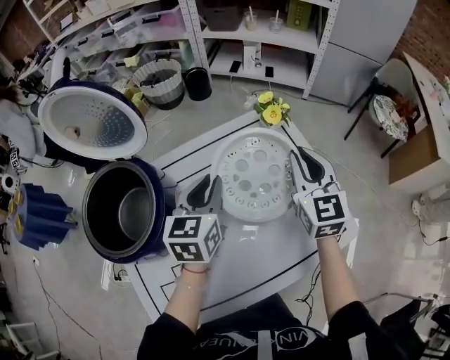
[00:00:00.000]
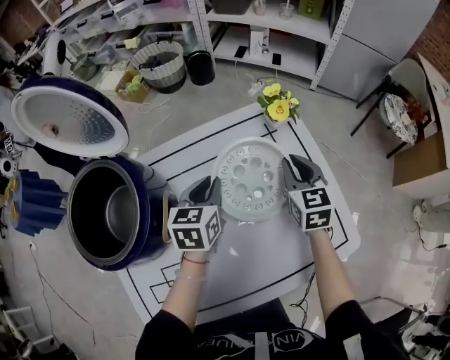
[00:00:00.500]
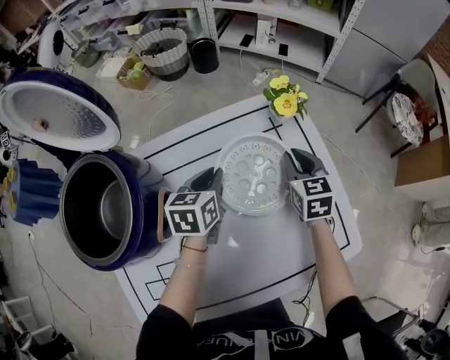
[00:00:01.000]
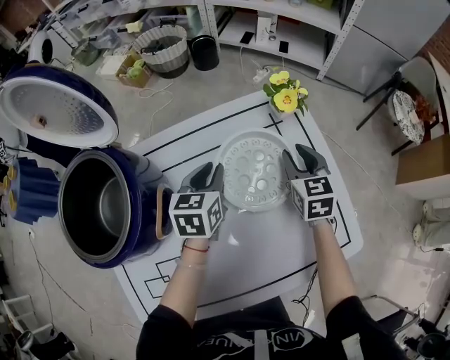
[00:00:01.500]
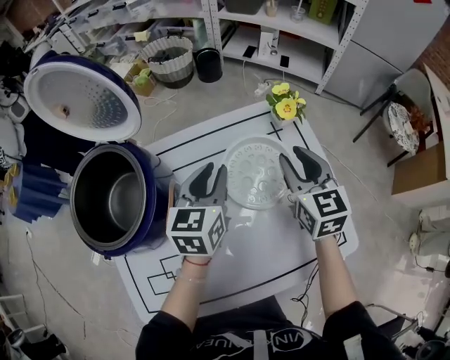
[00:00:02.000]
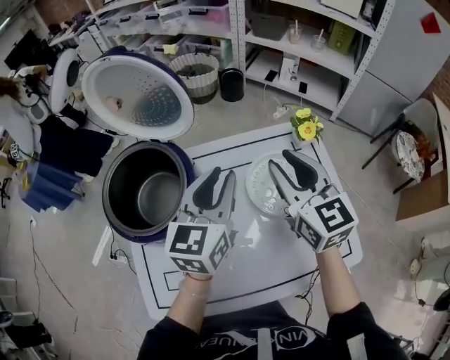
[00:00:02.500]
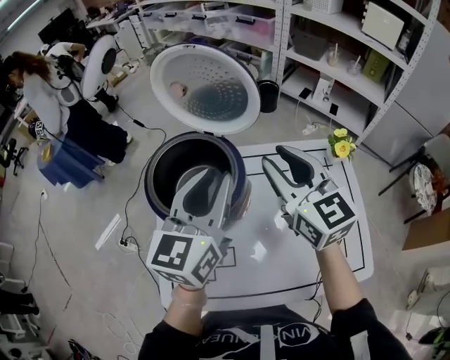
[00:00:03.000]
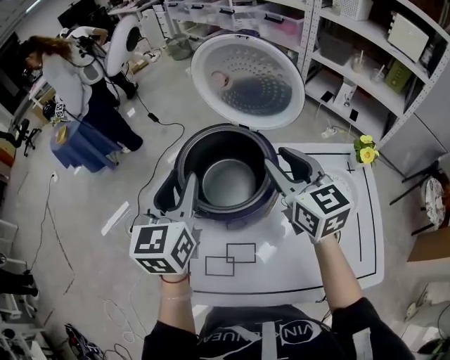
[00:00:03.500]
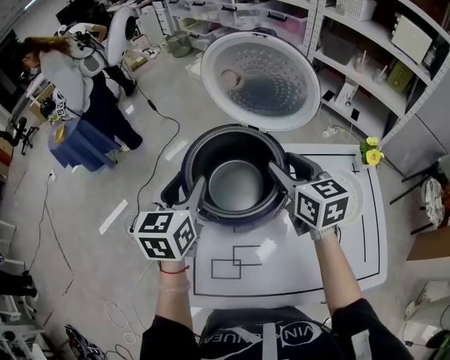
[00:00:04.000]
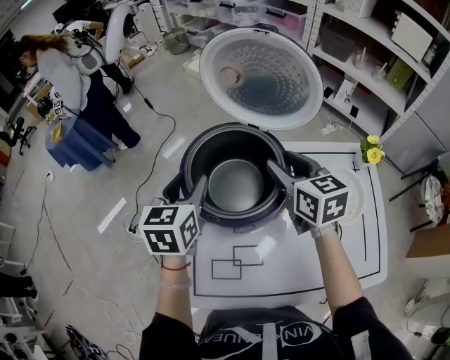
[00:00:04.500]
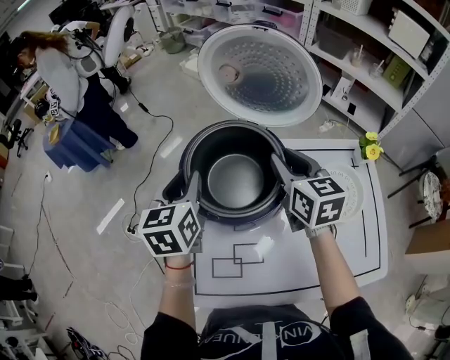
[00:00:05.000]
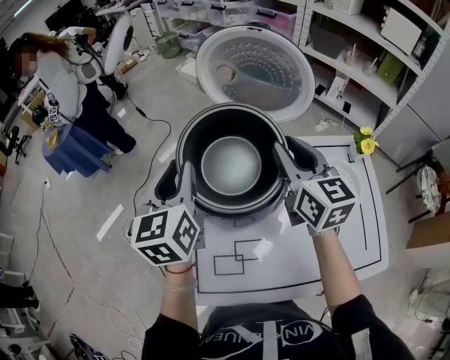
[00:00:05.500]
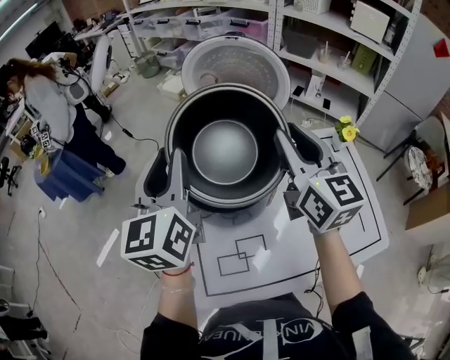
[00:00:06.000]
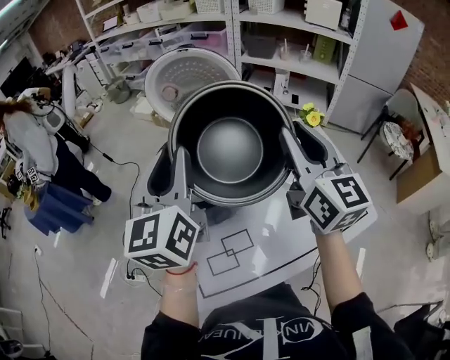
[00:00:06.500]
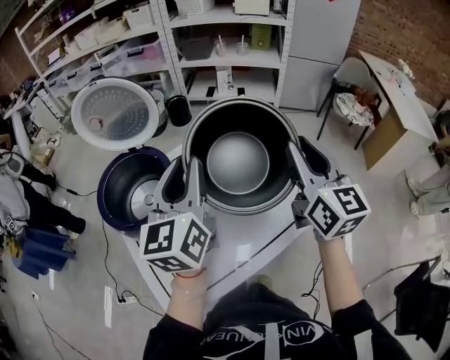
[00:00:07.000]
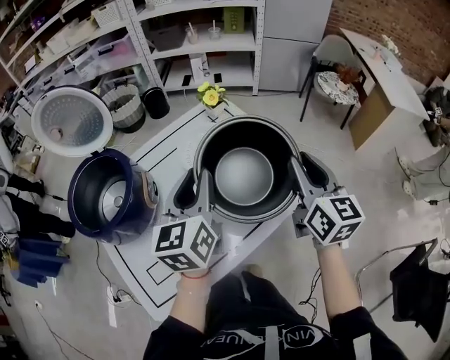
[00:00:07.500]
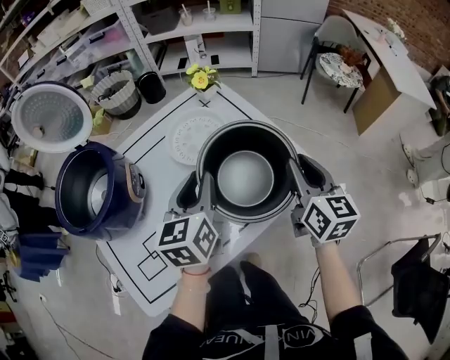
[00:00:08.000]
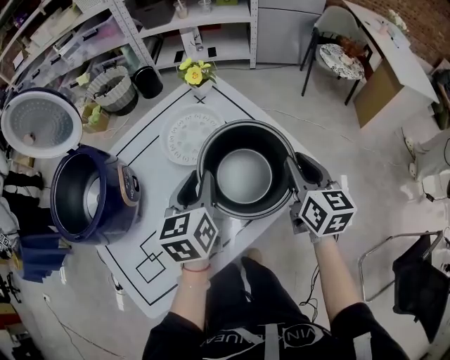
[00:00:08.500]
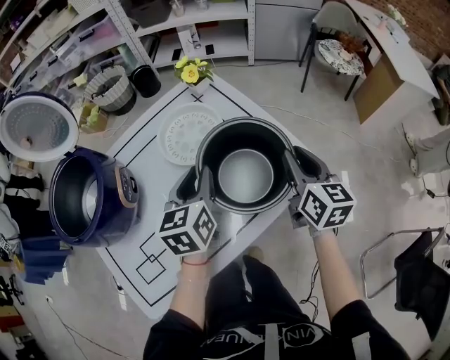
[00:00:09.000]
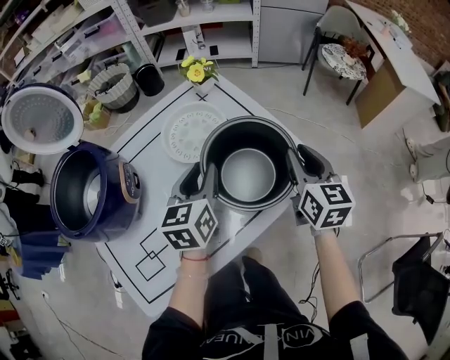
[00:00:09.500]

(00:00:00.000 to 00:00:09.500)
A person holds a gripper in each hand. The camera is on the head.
00:00:00.000 - 00:00:02.000: The right gripper moves roughly 15 cm downward and comes back, and opens its fingers, while the left gripper travels downward and back again, some 15 cm each way.
00:00:02.000 - 00:00:04.000: The left gripper changes place by approximately 40 cm, swivels some 20 degrees, and opens up; the right gripper ends up about 35 cm from where it was, and swivels about 30 degrees.
00:00:04.000 - 00:00:05.500: The grippers both shift upward by roughly 5 cm. The right gripper closes its fingers.
00:00:05.500 - 00:00:07.500: The two grippers travel together, some 40 cm. The left gripper rotates approximately 40 degrees, while the right gripper swivels about 40 degrees.
00:00:07.500 - 00:00:09.500: The grippers both shift downward by about 15 cm.

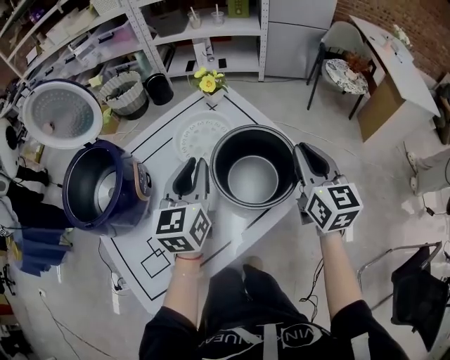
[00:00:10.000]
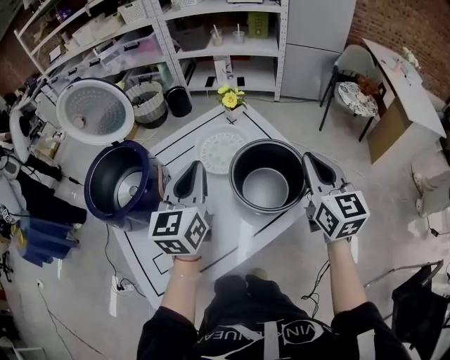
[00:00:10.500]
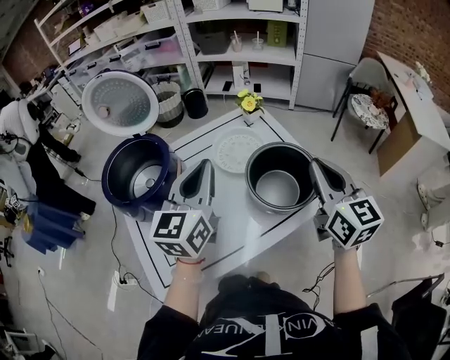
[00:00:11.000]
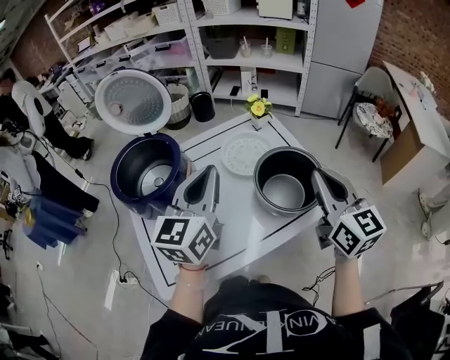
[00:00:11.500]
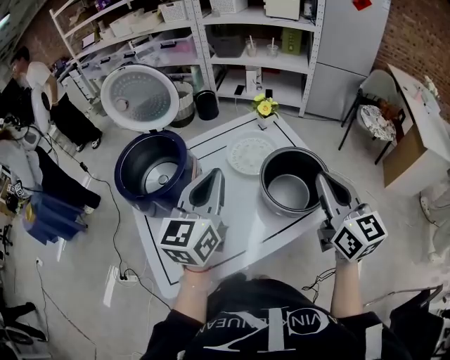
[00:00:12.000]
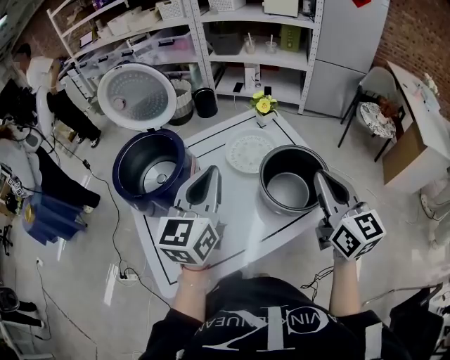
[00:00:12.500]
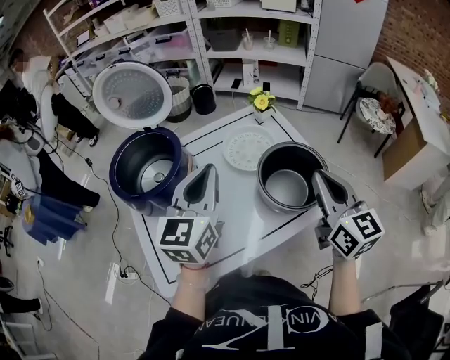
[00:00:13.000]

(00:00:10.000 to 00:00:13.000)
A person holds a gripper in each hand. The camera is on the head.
00:00:10.000 - 00:00:11.500: The right gripper shifts roughly 15 cm upward, to the left and backward; the left gripper is displaced upward, backward and to the left by some 15 cm.
00:00:11.500 - 00:00:13.000: The grippers stay close to where they were, moving slightly.

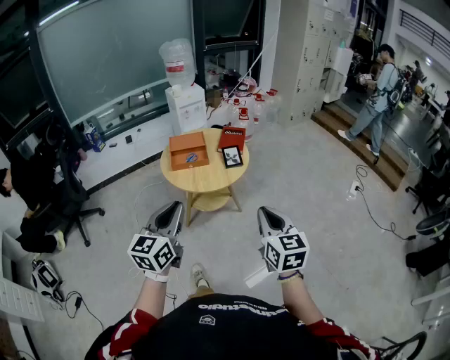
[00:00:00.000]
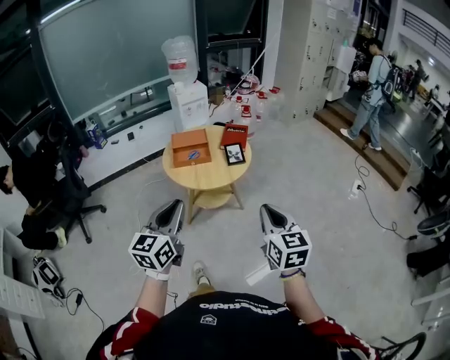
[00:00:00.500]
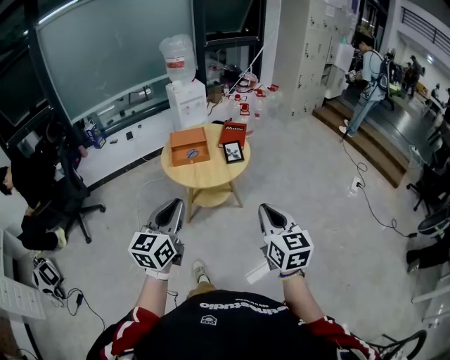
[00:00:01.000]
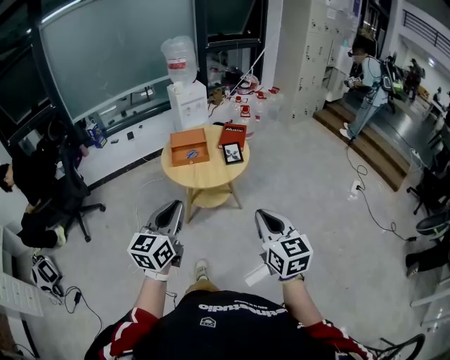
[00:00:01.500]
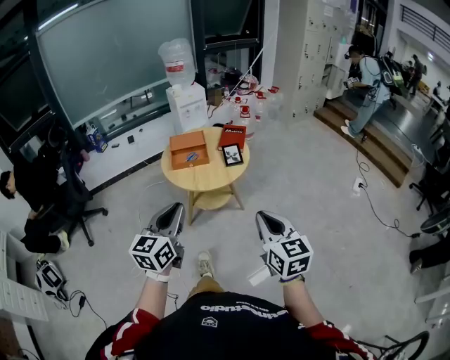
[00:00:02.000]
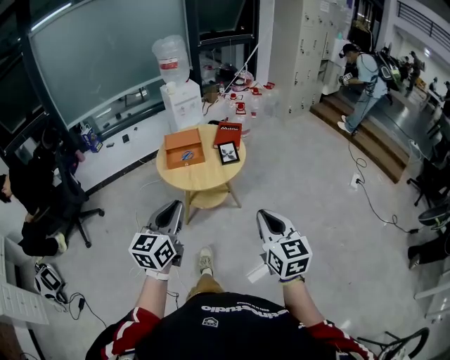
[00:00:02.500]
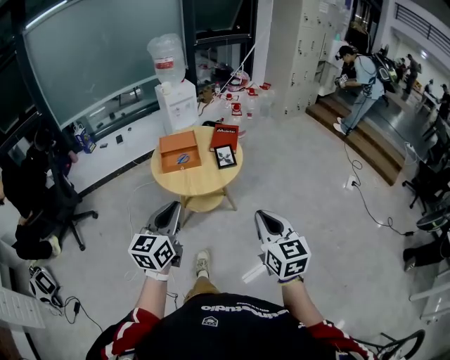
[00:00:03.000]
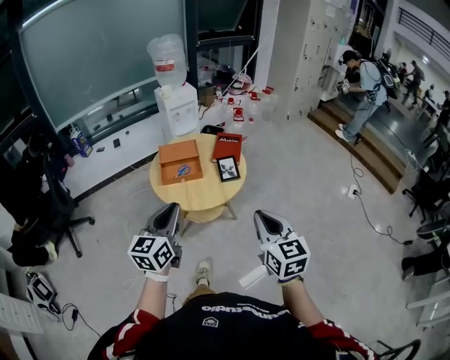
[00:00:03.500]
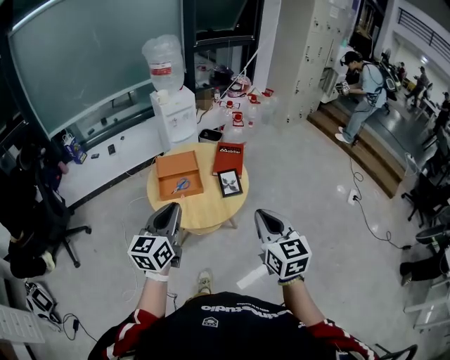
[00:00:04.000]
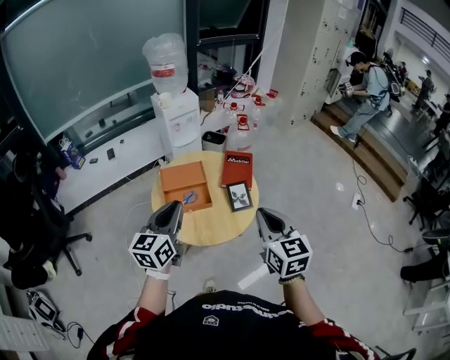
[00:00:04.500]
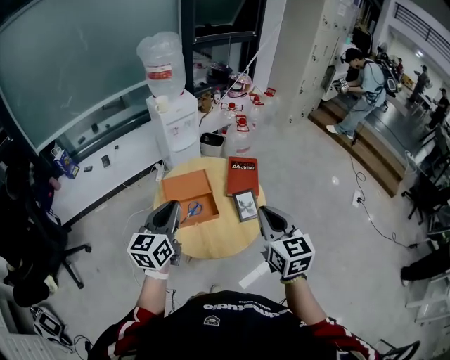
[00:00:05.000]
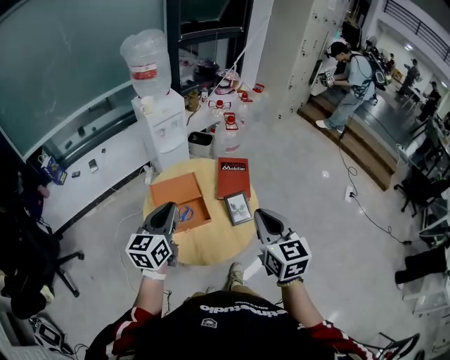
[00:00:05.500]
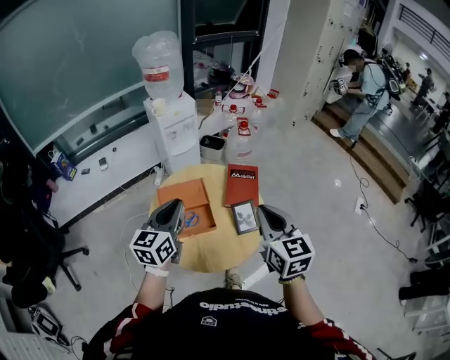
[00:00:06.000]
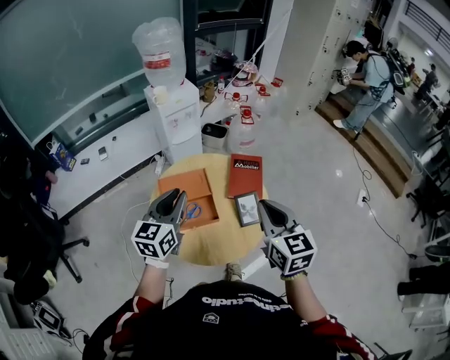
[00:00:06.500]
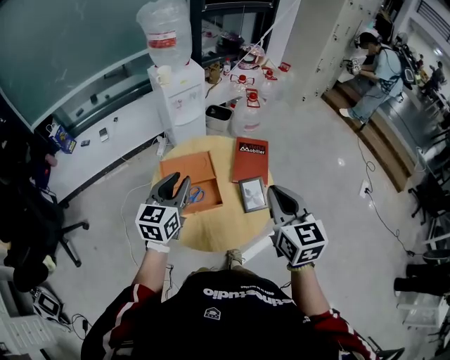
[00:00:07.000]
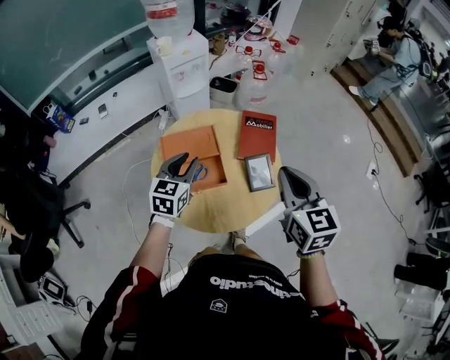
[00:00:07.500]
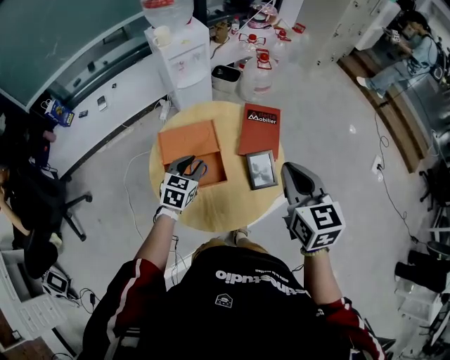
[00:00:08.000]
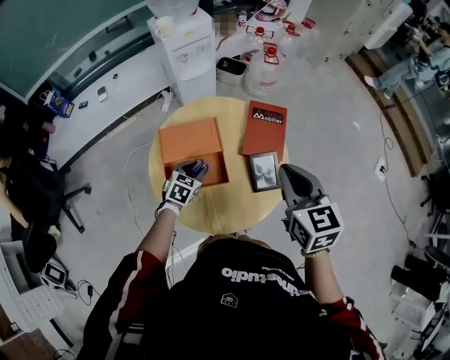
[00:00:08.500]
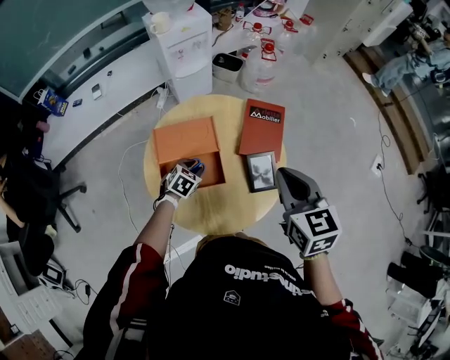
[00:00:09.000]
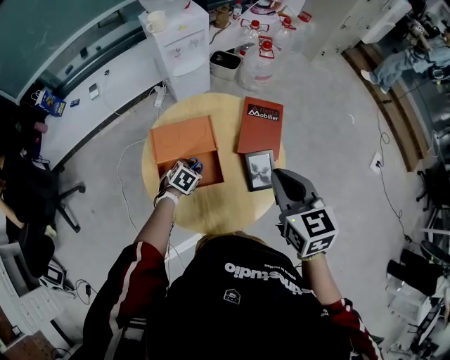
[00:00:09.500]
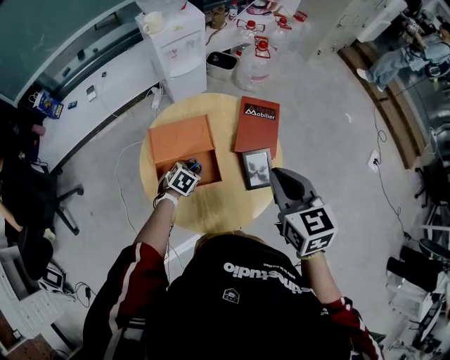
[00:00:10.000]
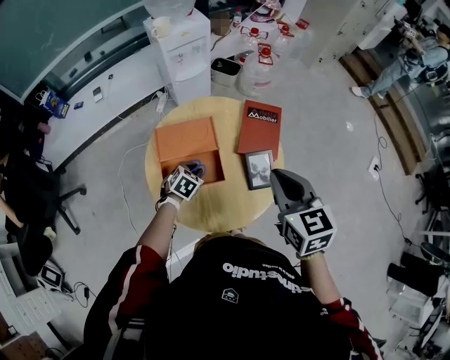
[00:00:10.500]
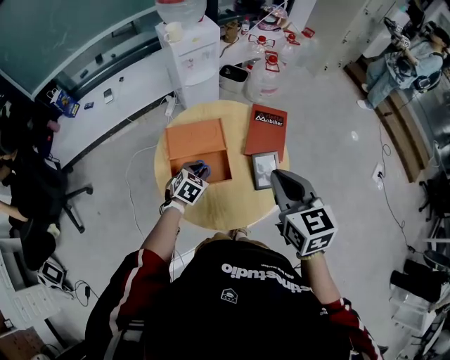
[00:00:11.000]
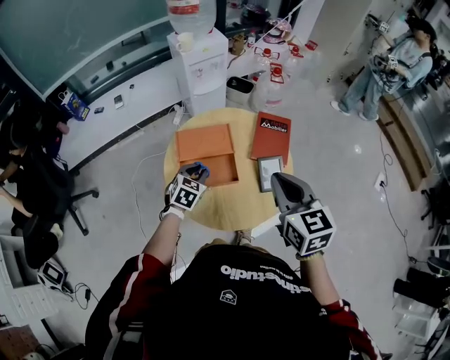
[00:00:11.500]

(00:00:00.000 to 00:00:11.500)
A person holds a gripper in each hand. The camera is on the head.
00:00:00.000 - 00:00:02.000: There are only small adjustments of the grippers.
00:00:02.000 - 00:00:04.000: The grippers both shift forward by about 25 cm.
00:00:04.000 - 00:00:06.000: The grippers both shift forward by approximately 25 cm.
00:00:06.000 - 00:00:07.500: The left gripper goes some 15 cm downward and forward. Meanwhile the right gripper shifts by roughly 5 cm.
00:00:07.500 - 00:00:09.500: The left gripper goes approximately 30 cm downward, and points its fingers about 40 degrees further downward; the right gripper moves downward and forward, roughly 10 cm.
00:00:09.500 - 00:00:11.500: The right gripper travels backward by about 10 cm; the left gripper goes roughly 15 cm upward, and rotates some 20 degrees.

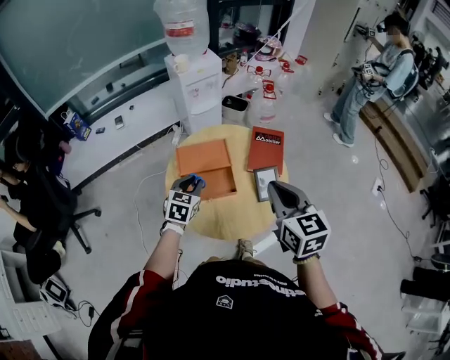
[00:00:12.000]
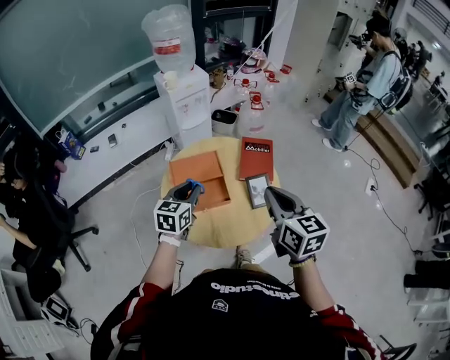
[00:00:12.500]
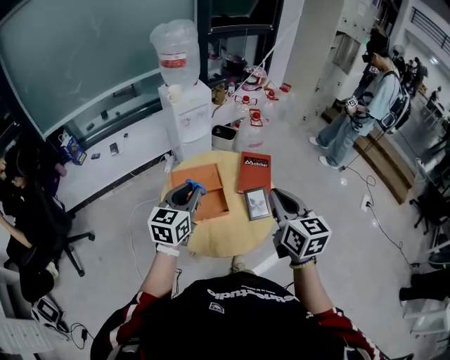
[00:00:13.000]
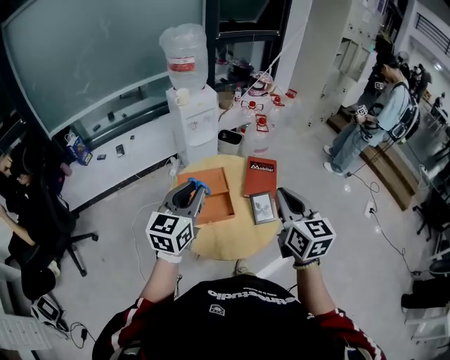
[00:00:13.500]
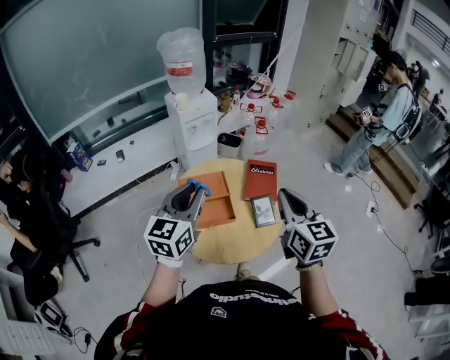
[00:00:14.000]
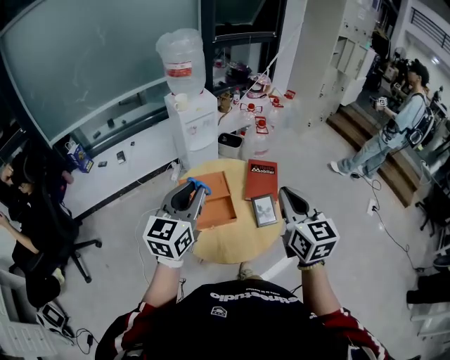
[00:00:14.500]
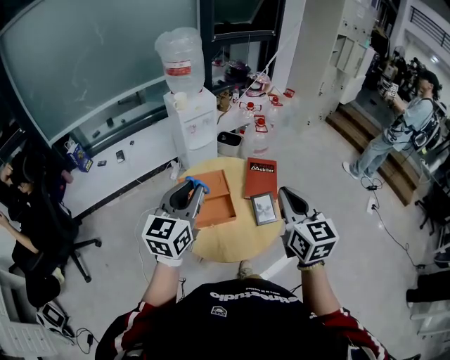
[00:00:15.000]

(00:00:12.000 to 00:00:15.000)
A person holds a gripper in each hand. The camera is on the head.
00:00:12.000 - 00:00:13.500: The left gripper travels upward by some 25 cm, and rotates roughly 30 degrees; the right gripper goes approximately 5 cm upward.
00:00:13.500 - 00:00:15.000: The grippers move only a little.
